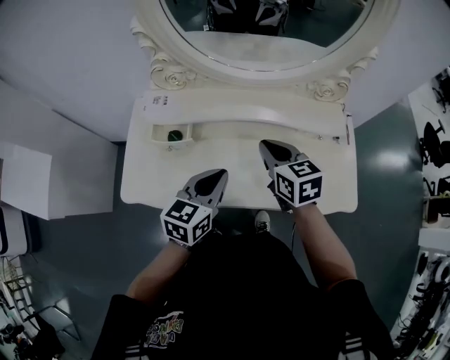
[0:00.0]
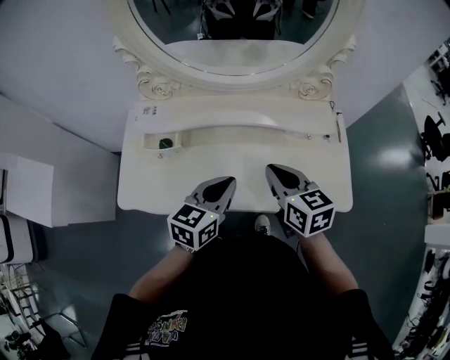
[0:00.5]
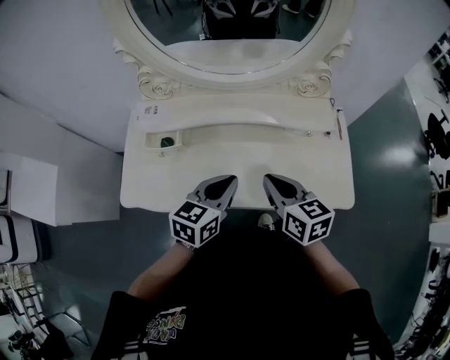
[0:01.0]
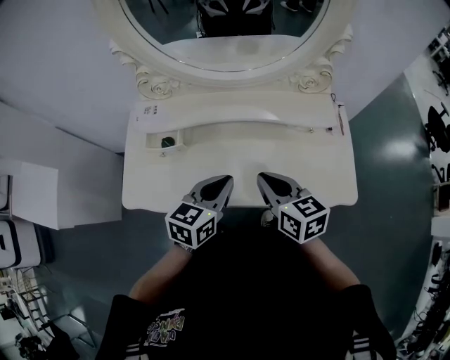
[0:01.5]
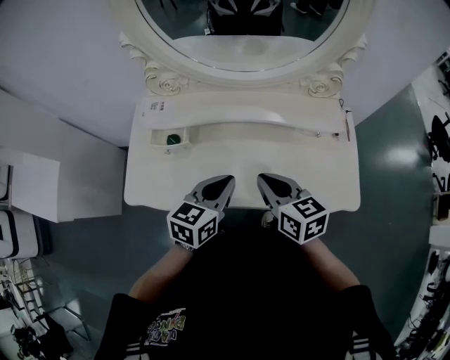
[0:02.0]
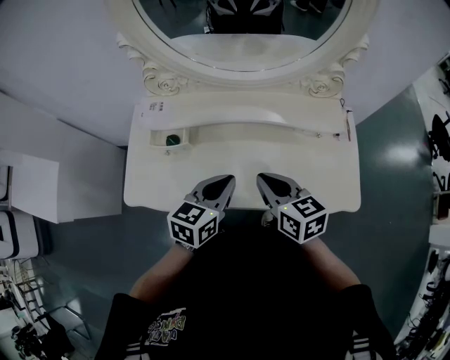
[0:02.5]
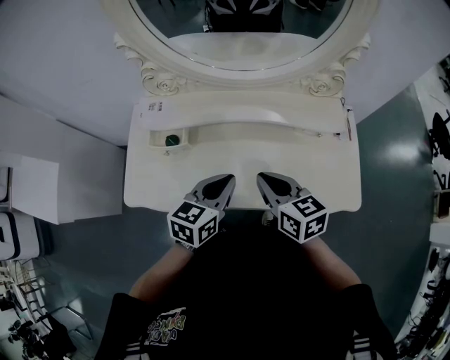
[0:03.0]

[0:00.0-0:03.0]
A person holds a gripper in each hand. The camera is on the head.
0:00.0 to 0:01.5: The left gripper is displaced to the right by roughly 5 cm. Meanwhile the right gripper moves backward, roughly 10 cm.
0:01.5 to 0:03.0: The grippers stay close to where they were, moving slightly.

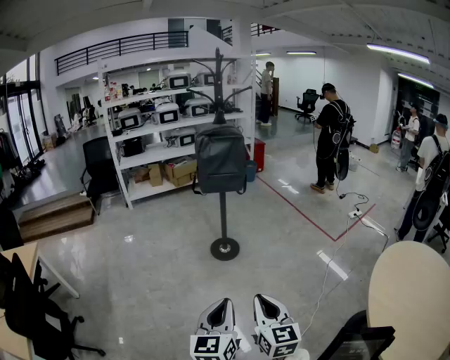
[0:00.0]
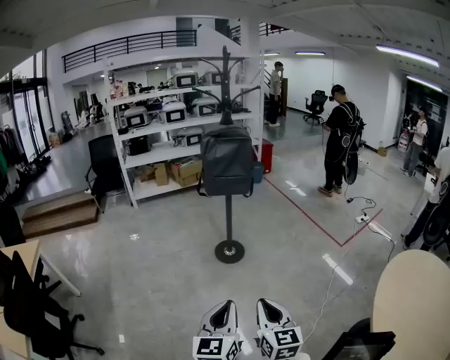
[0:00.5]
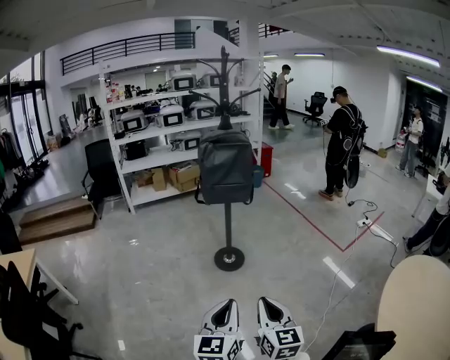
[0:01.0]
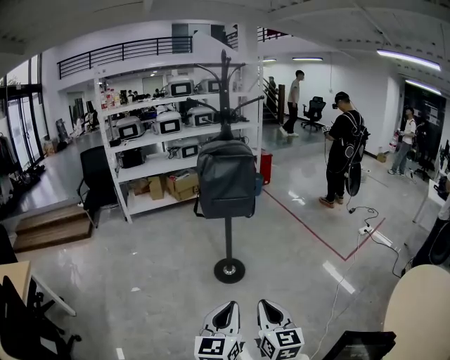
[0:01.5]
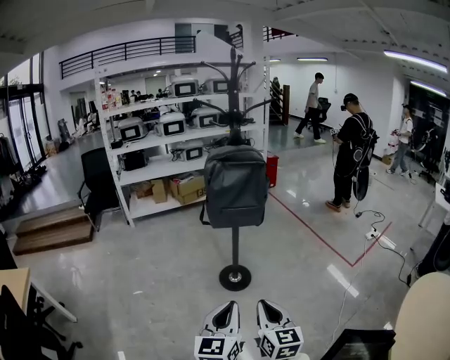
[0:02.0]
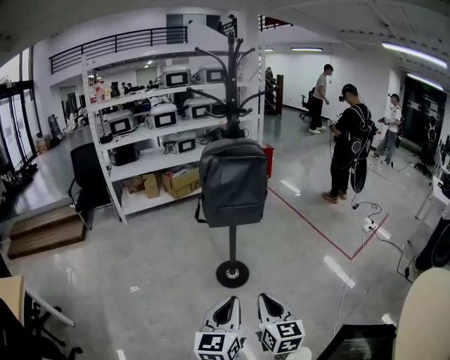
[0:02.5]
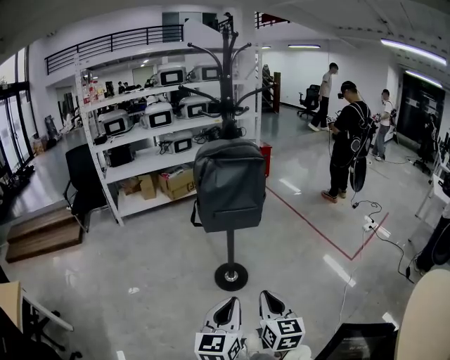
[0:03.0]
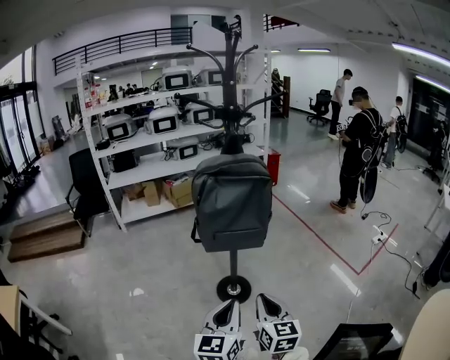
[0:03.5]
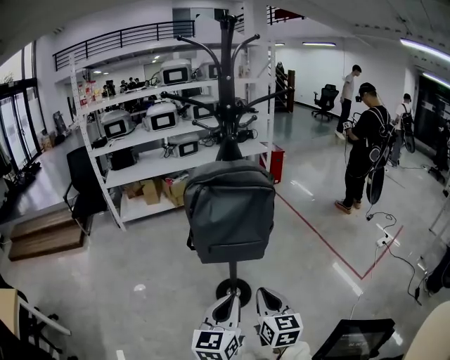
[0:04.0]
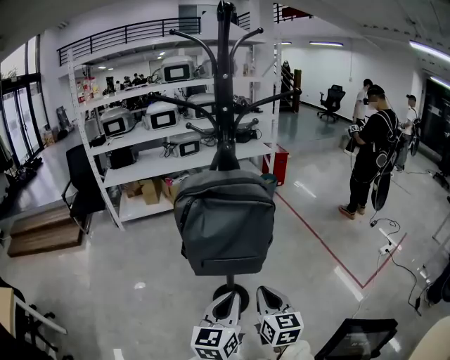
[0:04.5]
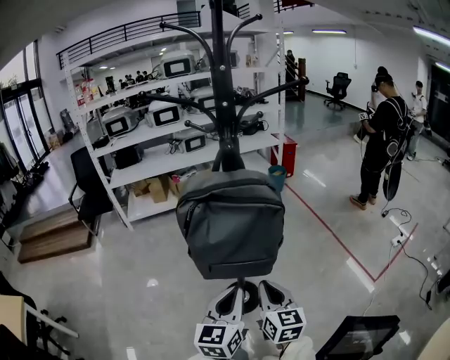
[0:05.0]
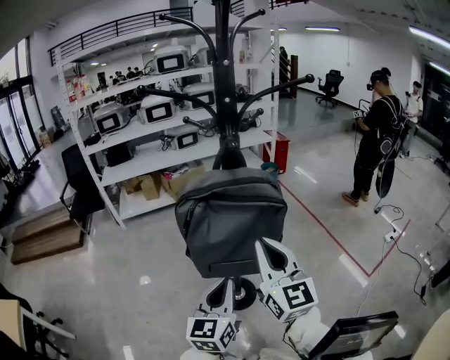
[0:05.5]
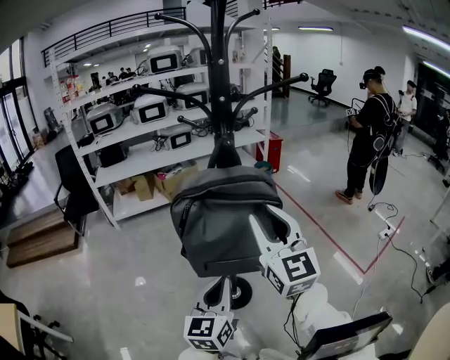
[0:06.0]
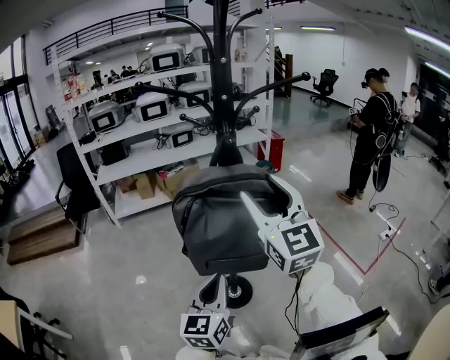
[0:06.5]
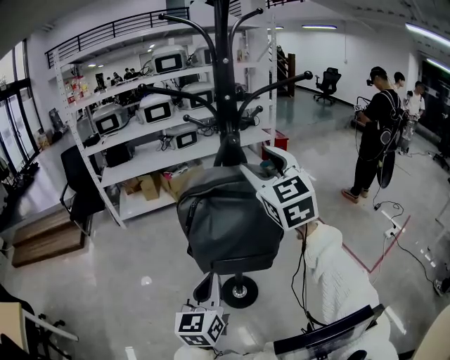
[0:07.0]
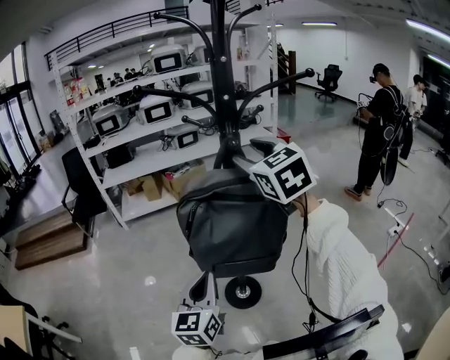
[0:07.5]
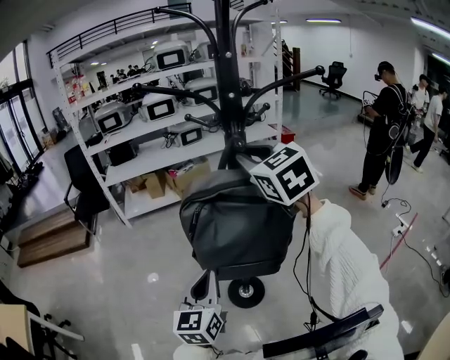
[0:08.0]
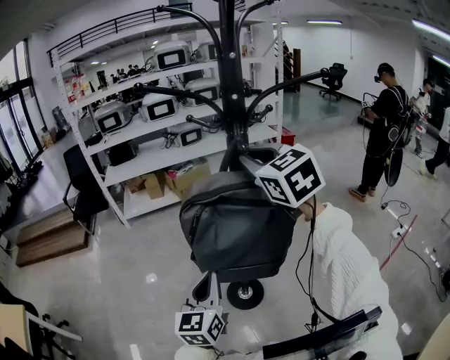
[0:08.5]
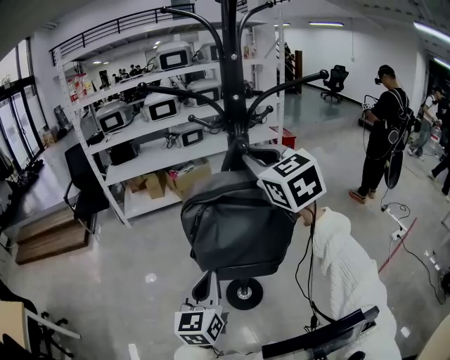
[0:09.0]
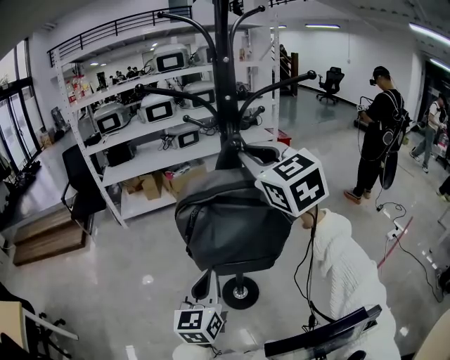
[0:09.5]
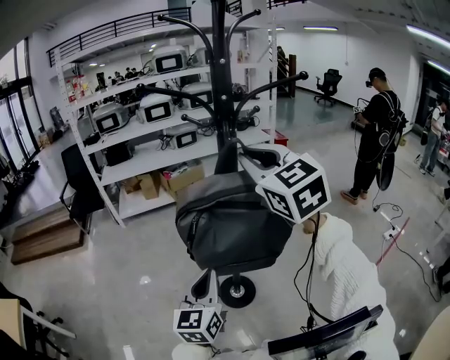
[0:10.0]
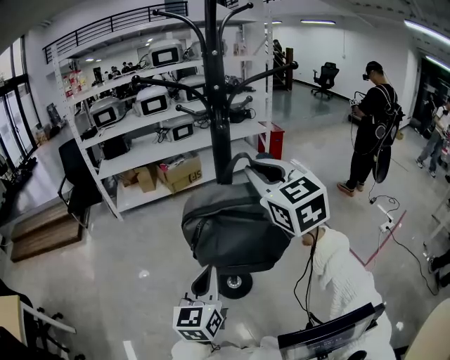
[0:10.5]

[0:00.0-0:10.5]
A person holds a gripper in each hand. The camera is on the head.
0:00.0 to 0:02.0: The grippers both shift forward by some 25 cm.
0:02.0 to 0:04.0: Both grippers travel together forward, about 25 cm.
0:04.0 to 0:06.5: The right gripper moves upward and forward, approximately 35 cm, turns by some 40 degrees, and opens its fingers; the left gripper heads forward, covering approximately 10 cm.
0:06.5 to 0:08.5: The right gripper is displaced forward by about 10 cm, rotates approximately 30 degrees, and closes its fingers. The left gripper shifts by approximately 5 cm.
0:08.5 to 0:10.5: The right gripper heads backward, covering some 10 cm. Meanwhile the left gripper heads backward, covering approximately 5 cm.

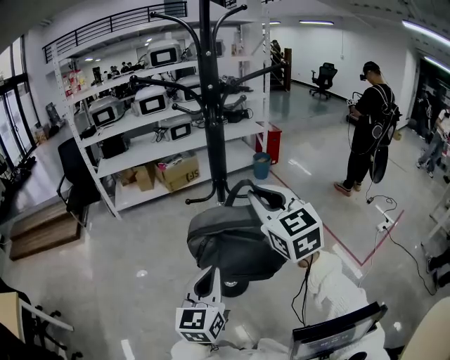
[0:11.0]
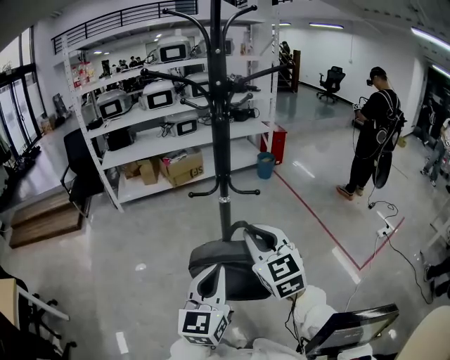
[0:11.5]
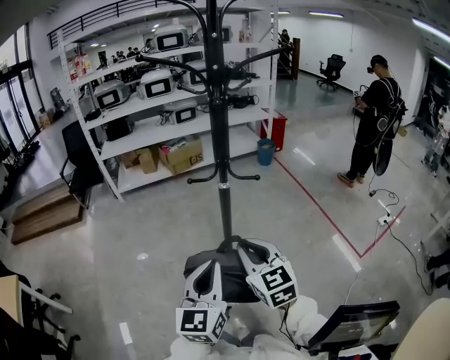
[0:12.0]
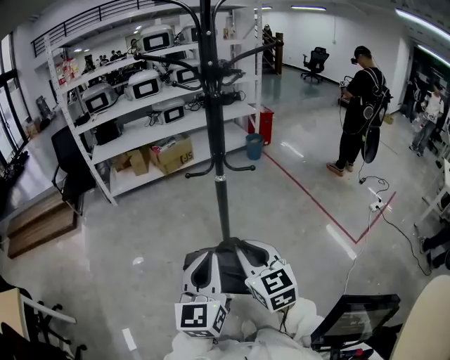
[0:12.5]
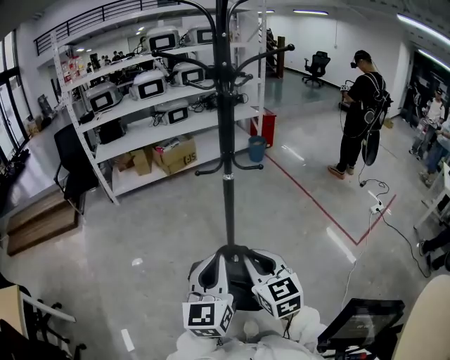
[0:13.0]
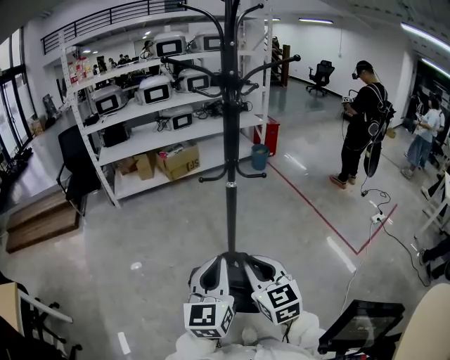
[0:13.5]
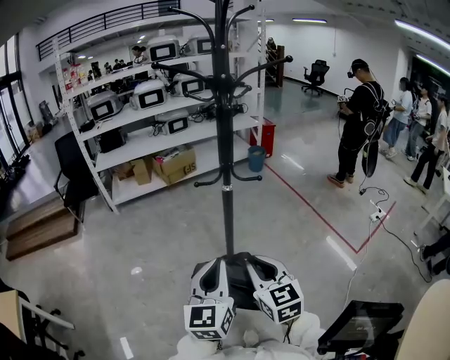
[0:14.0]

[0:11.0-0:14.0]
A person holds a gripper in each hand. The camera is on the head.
0:11.0 to 0:12.5: The left gripper heads backward, covering some 5 cm. Meanwhile the right gripper heads downward, backward and to the left, covering about 20 cm.
0:12.5 to 0:14.0: The grippers move only a little.

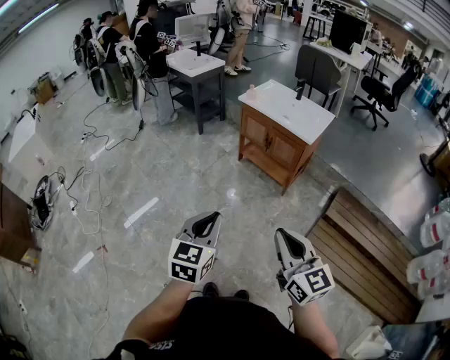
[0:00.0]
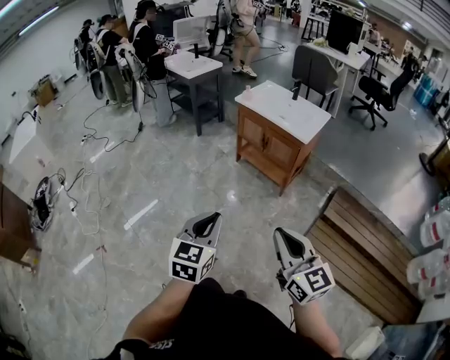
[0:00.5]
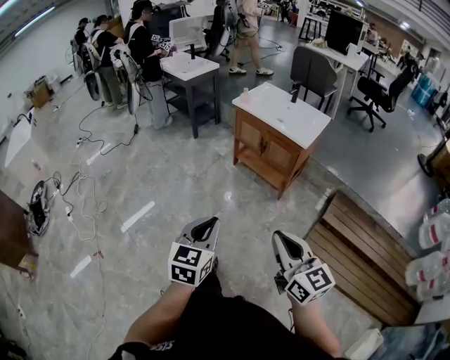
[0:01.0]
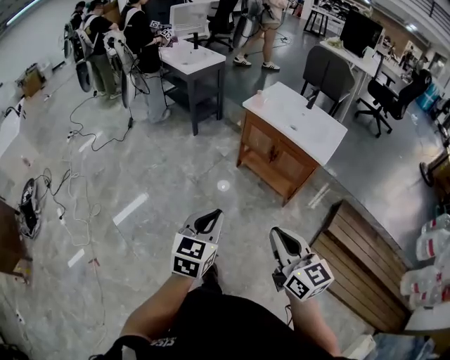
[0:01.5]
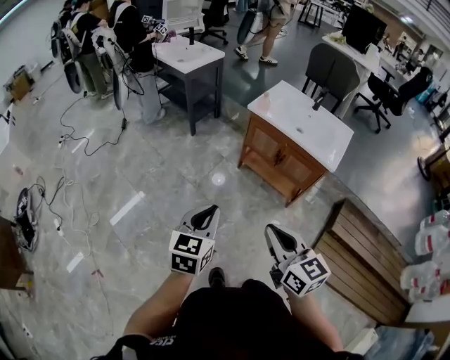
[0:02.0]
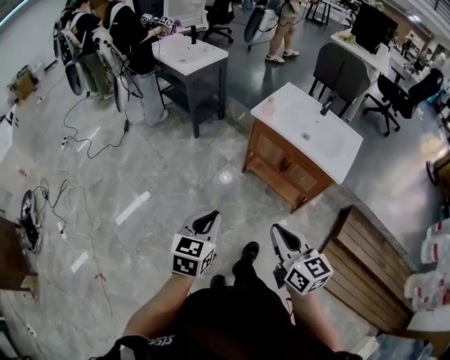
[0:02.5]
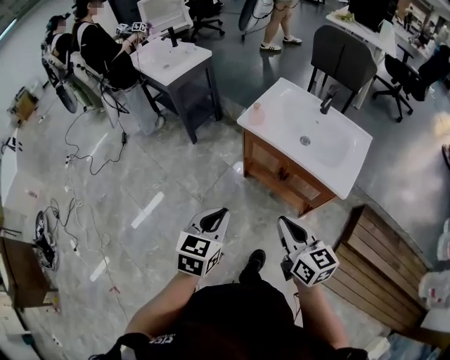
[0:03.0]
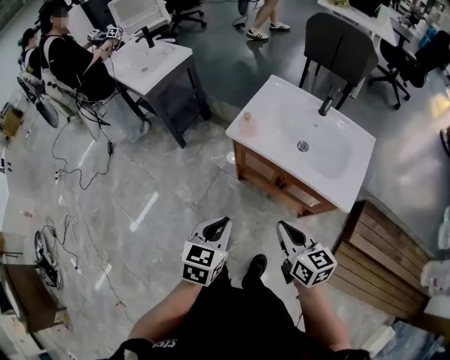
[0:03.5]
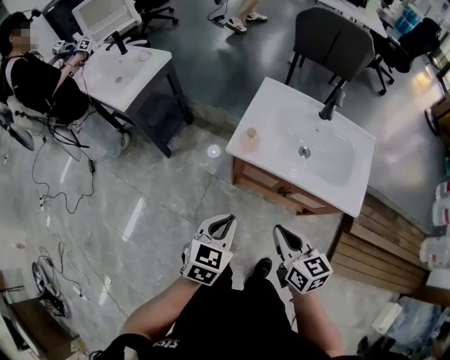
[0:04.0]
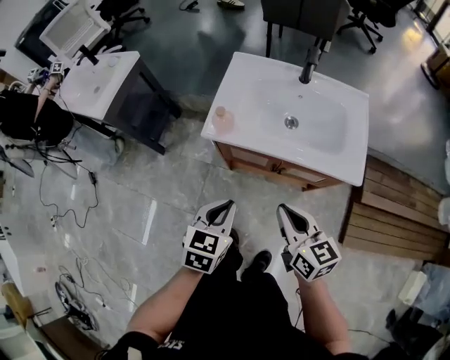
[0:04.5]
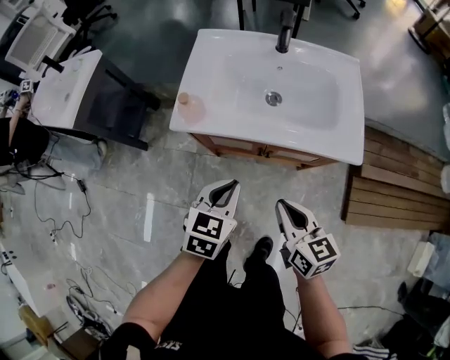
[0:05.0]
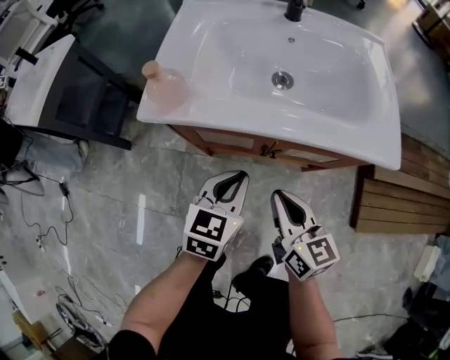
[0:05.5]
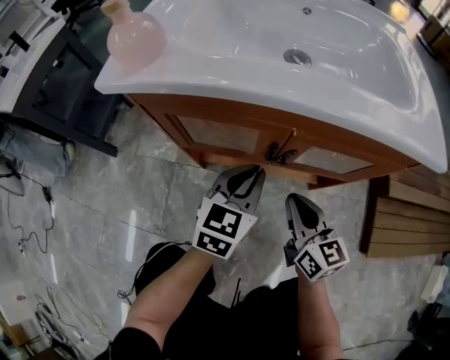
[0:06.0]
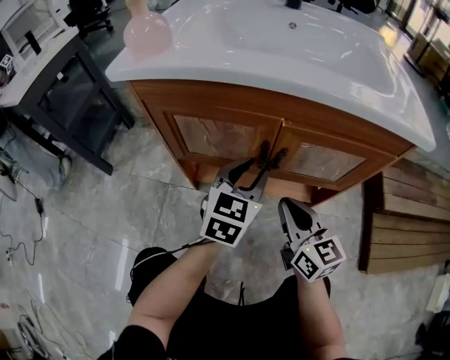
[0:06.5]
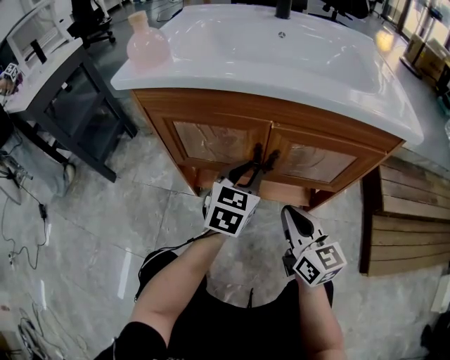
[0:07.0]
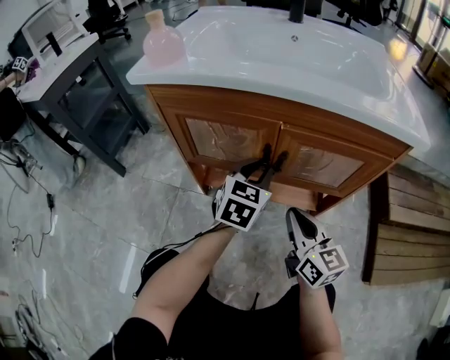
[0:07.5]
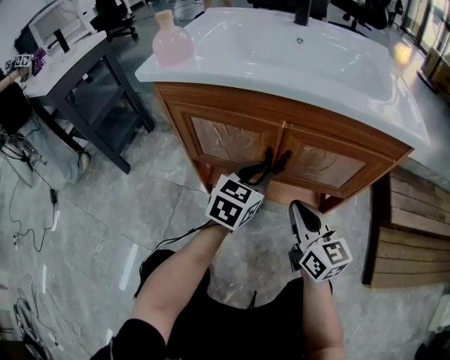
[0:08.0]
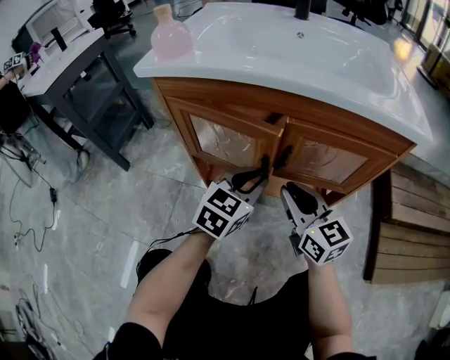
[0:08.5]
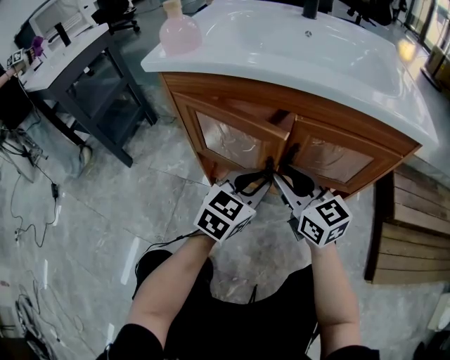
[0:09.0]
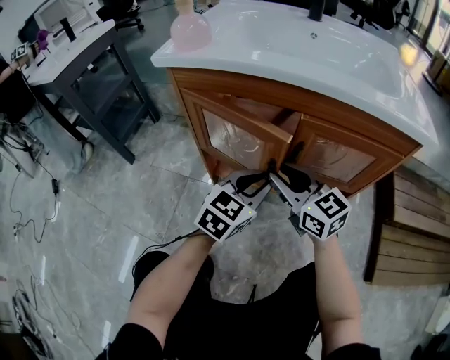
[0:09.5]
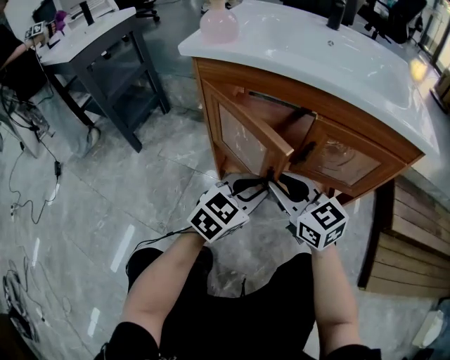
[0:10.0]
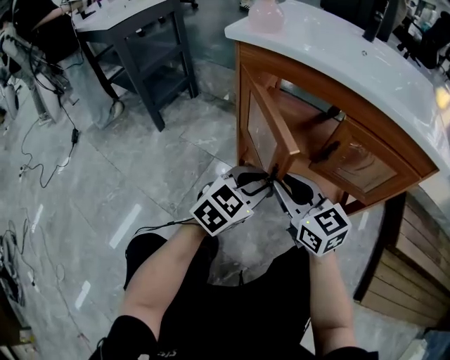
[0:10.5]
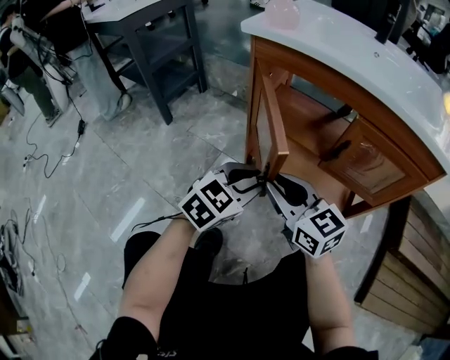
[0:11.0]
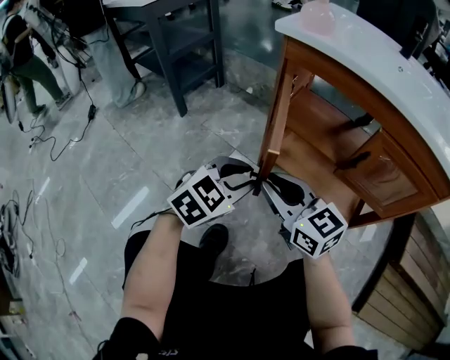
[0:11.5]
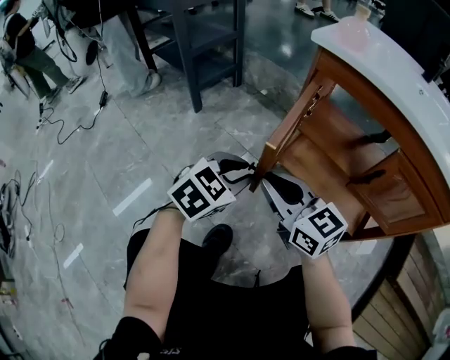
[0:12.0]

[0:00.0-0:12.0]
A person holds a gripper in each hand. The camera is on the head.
0:00.0 to 0:02.0: The right gripper is displaced forward and to the left by about 35 cm. The left gripper is displaced forward by some 35 cm.
0:02.0 to 0:04.0: The two grippers travel together, forward, approximately 50 cm. The right gripper swivels about 30 degrees; the left gripper swivels some 30 degrees.
0:04.0 to 0:06.0: The right gripper goes approximately 40 cm downward, and changes its angle by approximately 20 degrees, while the left gripper shifts about 50 cm downward, to the right and forward.
0:06.0 to 0:08.0: The grippers make only small movements.
0:08.0 to 0:10.0: The right gripper shifts about 10 cm to the left, turns by approximately 30 degrees, and opens, while the left gripper shifts approximately 10 cm backward and to the left.
0:10.0 to 0:12.0: Both grippers move to the left, roughly 20 cm. The left gripper turns by some 20 degrees; the right gripper changes its angle by roughly 20 degrees.
